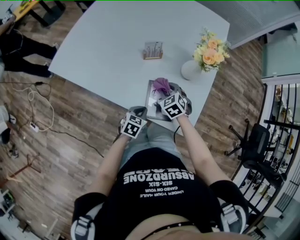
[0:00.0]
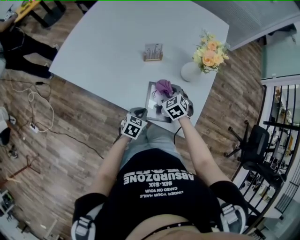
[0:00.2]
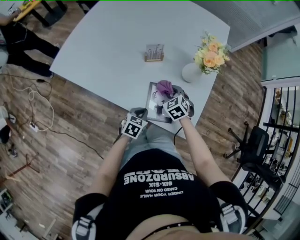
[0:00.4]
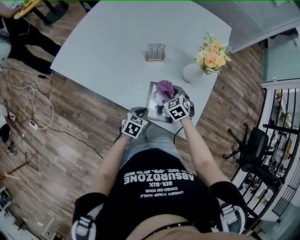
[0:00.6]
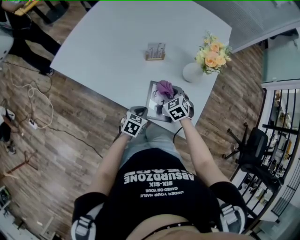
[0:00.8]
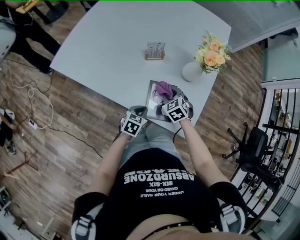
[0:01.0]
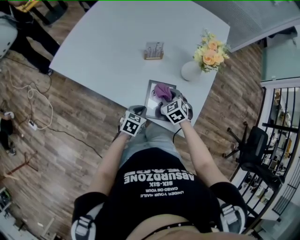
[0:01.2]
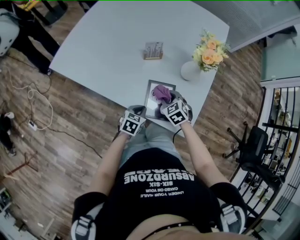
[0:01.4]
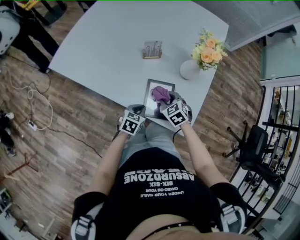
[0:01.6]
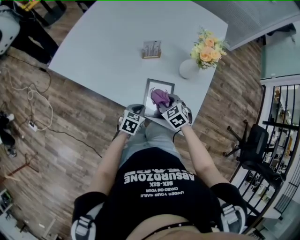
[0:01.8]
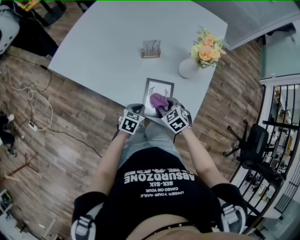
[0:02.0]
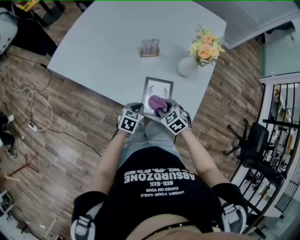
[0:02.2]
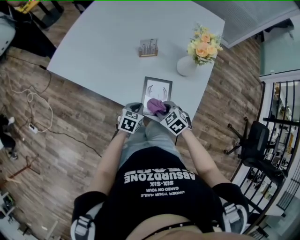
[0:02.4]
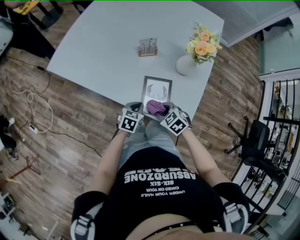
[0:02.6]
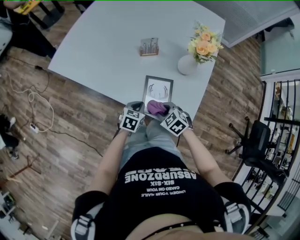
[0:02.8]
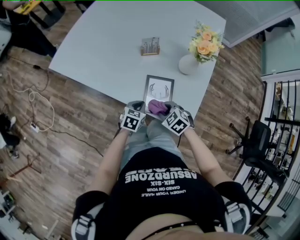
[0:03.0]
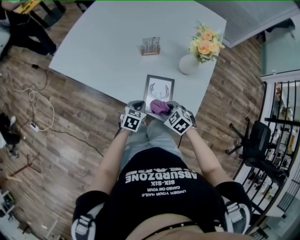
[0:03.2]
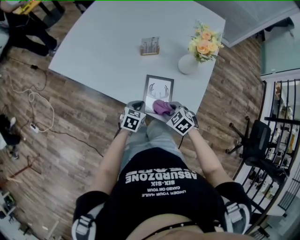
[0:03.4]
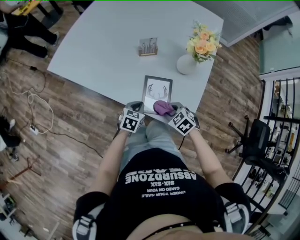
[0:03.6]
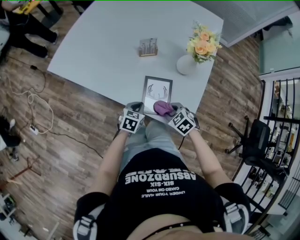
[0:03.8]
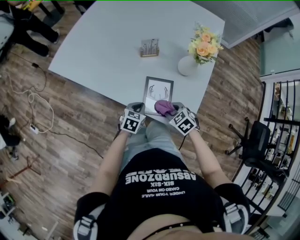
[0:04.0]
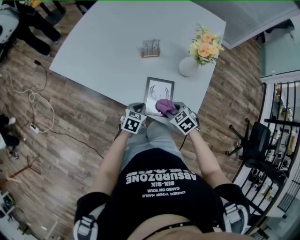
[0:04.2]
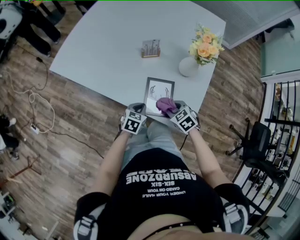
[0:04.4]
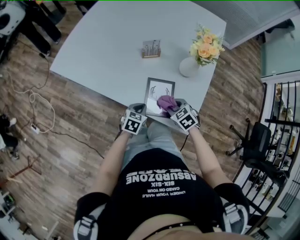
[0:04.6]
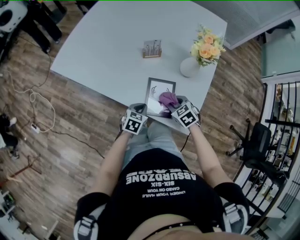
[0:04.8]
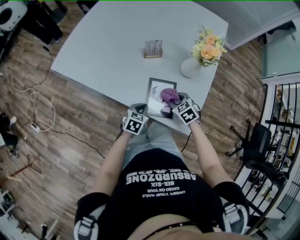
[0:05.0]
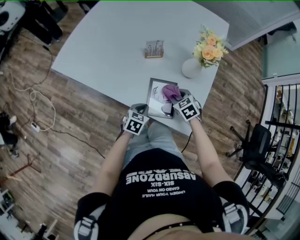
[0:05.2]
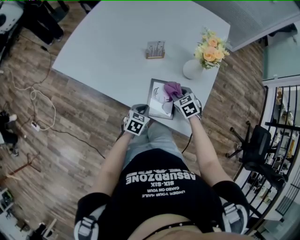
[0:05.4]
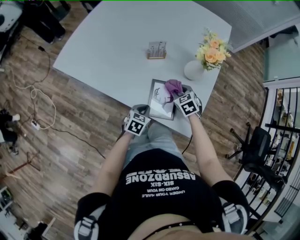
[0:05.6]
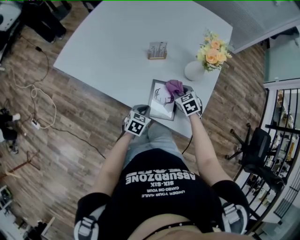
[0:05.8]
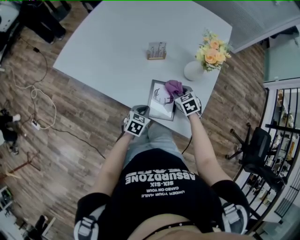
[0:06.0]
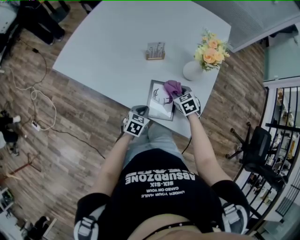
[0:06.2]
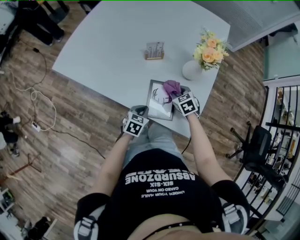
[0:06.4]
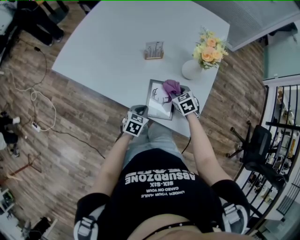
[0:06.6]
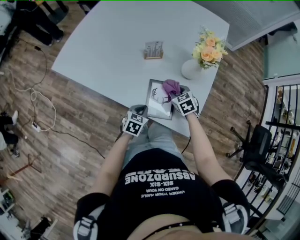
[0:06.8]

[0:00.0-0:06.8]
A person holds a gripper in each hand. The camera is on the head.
0:00.0 to 0:01.4: The grippers make only small movements.
0:01.4 to 0:02.8: The right gripper is displaced backward by some 10 cm.
0:02.8 to 0:04.0: There are only small adjustments of the grippers.
0:04.0 to 0:05.4: The right gripper shifts approximately 10 cm forward.
0:05.4 to 0:06.8: The grippers make only small movements.

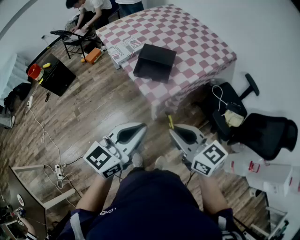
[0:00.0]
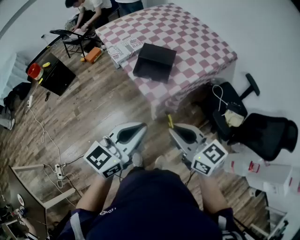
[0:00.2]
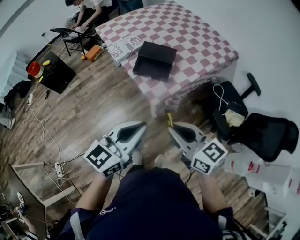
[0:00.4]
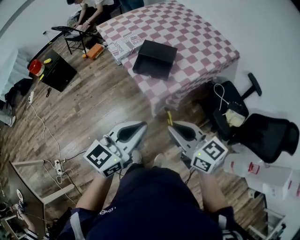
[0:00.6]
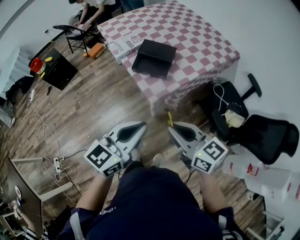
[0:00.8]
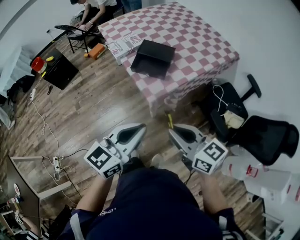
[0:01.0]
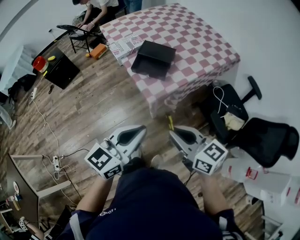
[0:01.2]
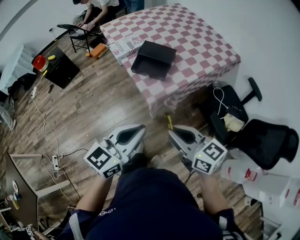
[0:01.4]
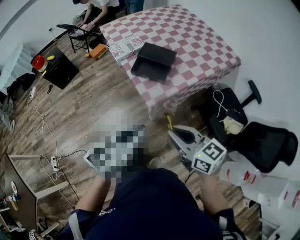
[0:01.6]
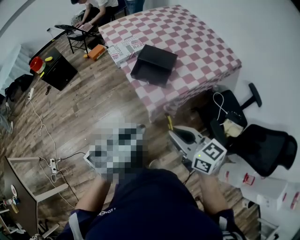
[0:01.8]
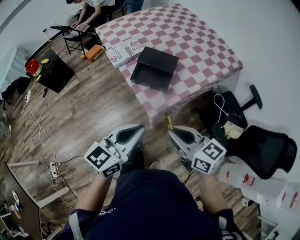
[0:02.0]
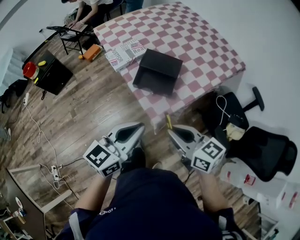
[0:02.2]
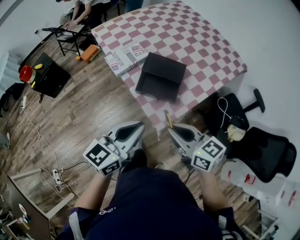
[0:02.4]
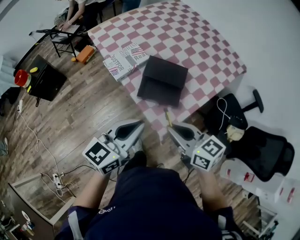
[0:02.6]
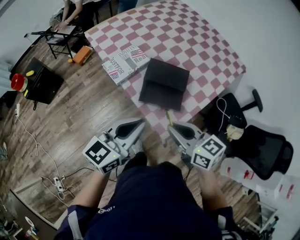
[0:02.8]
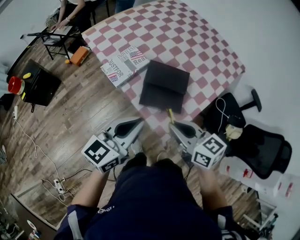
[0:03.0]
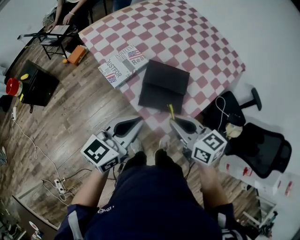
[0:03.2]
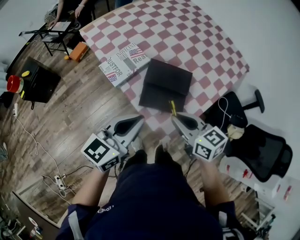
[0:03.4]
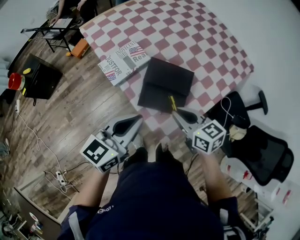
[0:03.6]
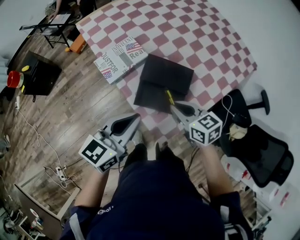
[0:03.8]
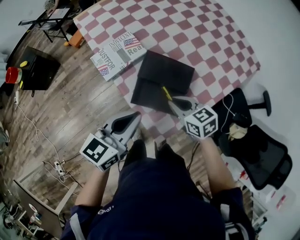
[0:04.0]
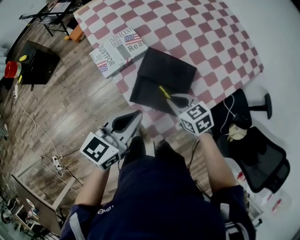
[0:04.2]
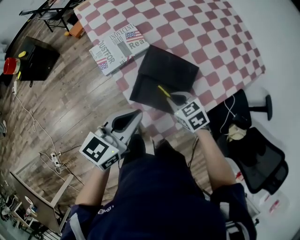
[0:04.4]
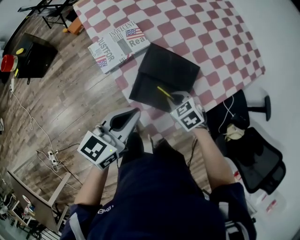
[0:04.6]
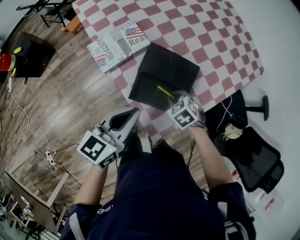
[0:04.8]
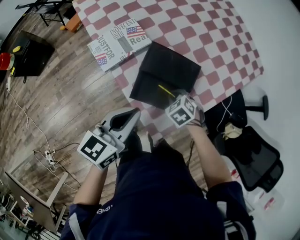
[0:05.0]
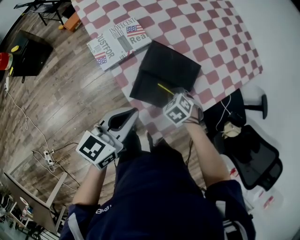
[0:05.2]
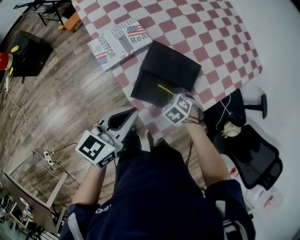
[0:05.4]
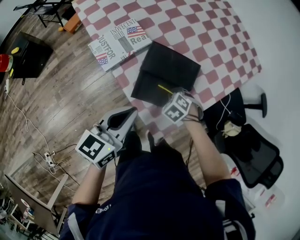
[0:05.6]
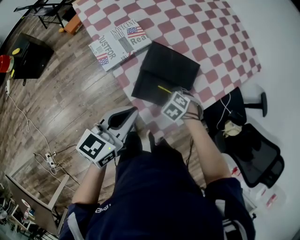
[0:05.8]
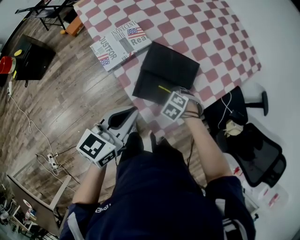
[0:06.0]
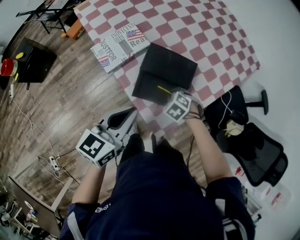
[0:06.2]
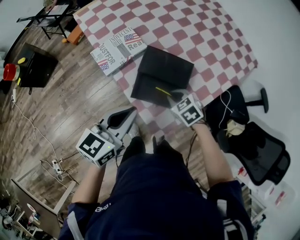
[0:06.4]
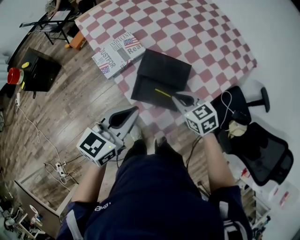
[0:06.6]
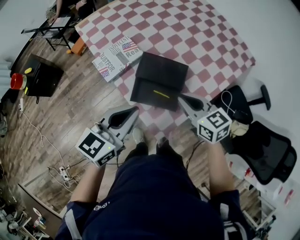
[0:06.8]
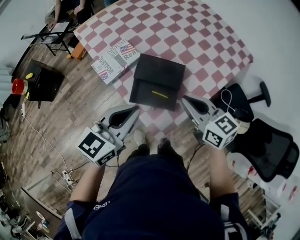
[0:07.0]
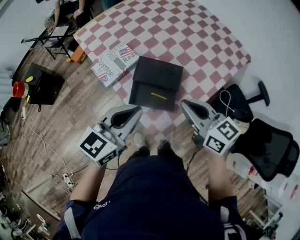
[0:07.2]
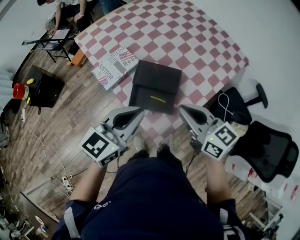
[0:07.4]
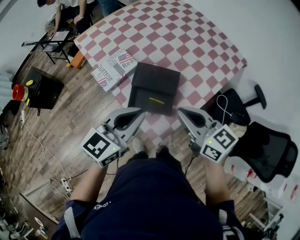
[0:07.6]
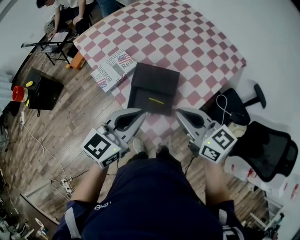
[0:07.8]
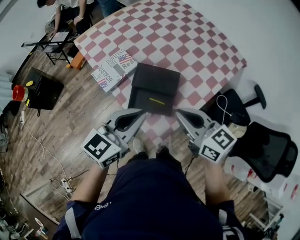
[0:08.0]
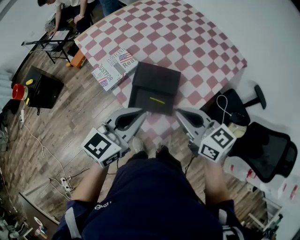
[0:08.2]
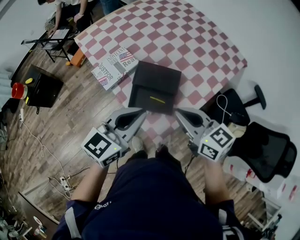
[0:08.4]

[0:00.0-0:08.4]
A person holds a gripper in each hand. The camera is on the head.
0:00.0 to 0:01.4: Both grippers move to the right, roughly 5 cm.
0:01.4 to 0:02.8: The grippers both shift forward by approximately 30 cm.
0:02.8 to 0:04.2: The right gripper travels downward and forward by roughly 25 cm, and rotates approximately 30 degrees. Meanwhile the left gripper heads forward and downward, covering roughly 15 cm.
0:04.2 to 0:05.6: The right gripper goes roughly 10 cm downward, and points its fingers approximately 30 degrees further downward.
0:05.6 to 0:07.0: The right gripper heads upward, covering some 30 cm, and tips its fingers upward by approximately 60 degrees; the left gripper moves upward, roughly 10 cm.
0:07.0 to 0:08.4: The right gripper moves some 5 cm.

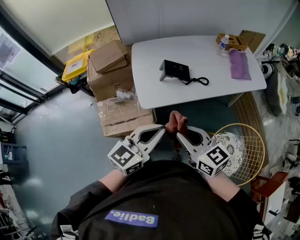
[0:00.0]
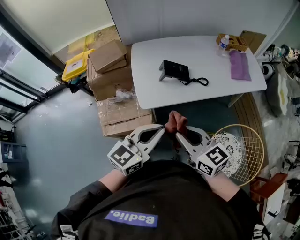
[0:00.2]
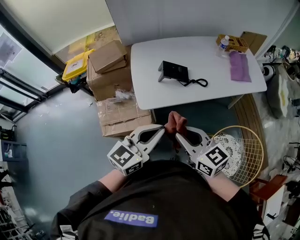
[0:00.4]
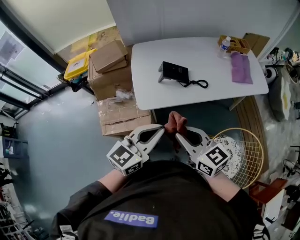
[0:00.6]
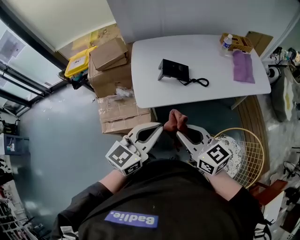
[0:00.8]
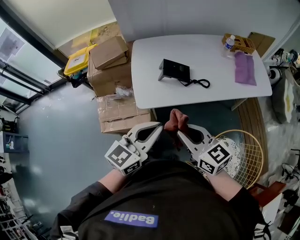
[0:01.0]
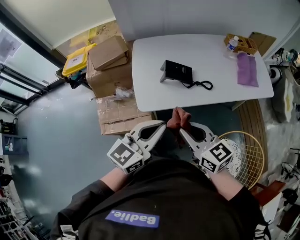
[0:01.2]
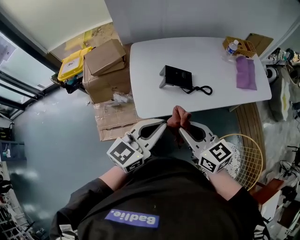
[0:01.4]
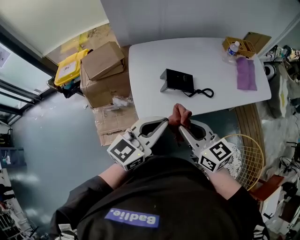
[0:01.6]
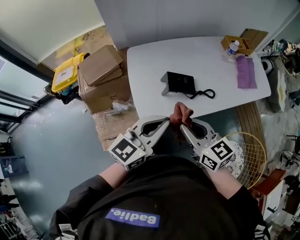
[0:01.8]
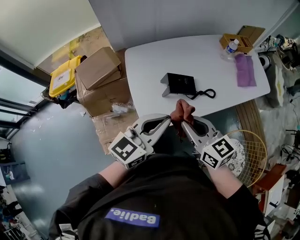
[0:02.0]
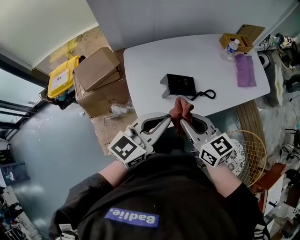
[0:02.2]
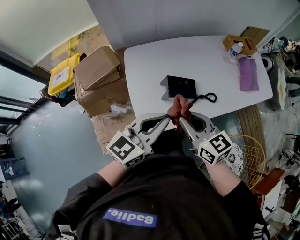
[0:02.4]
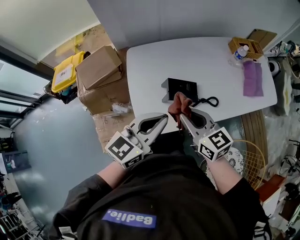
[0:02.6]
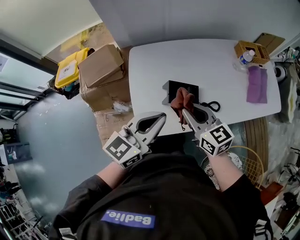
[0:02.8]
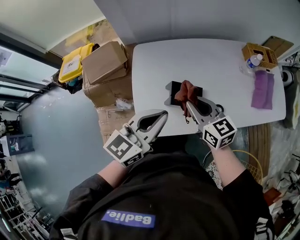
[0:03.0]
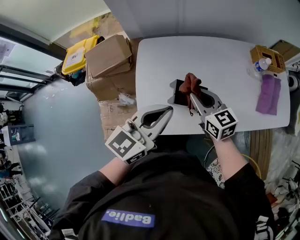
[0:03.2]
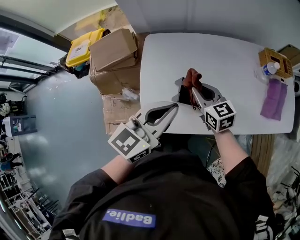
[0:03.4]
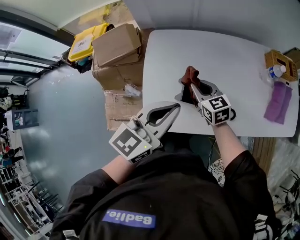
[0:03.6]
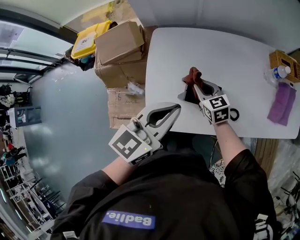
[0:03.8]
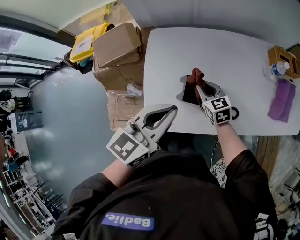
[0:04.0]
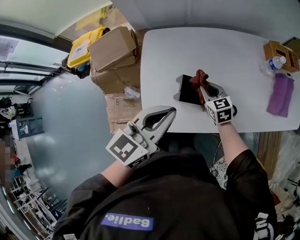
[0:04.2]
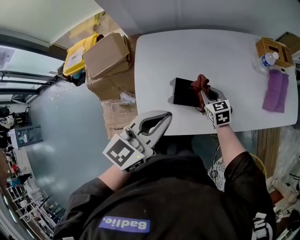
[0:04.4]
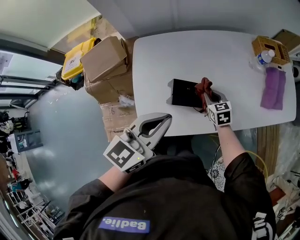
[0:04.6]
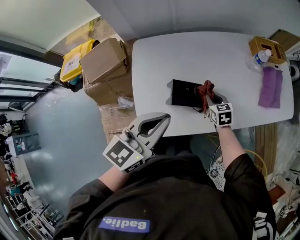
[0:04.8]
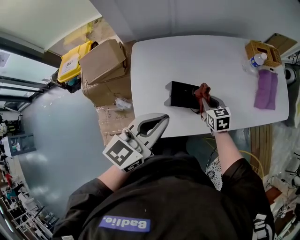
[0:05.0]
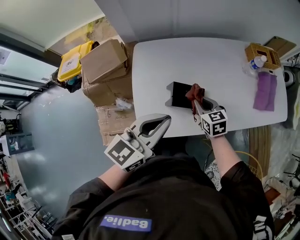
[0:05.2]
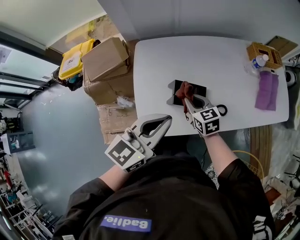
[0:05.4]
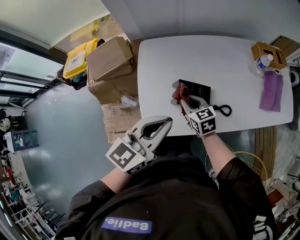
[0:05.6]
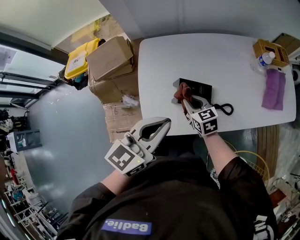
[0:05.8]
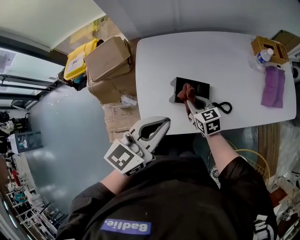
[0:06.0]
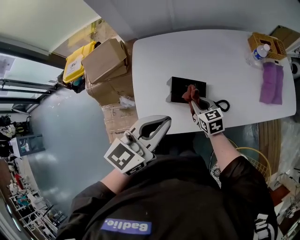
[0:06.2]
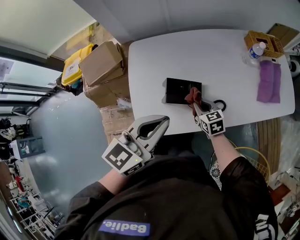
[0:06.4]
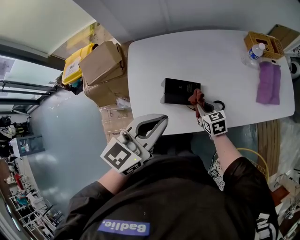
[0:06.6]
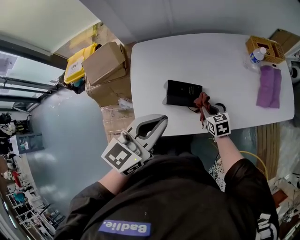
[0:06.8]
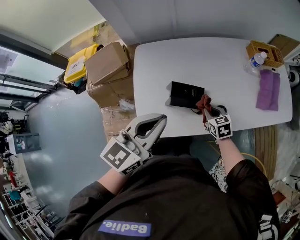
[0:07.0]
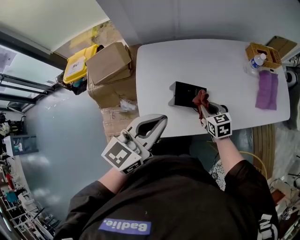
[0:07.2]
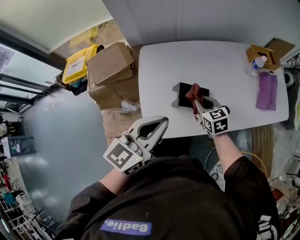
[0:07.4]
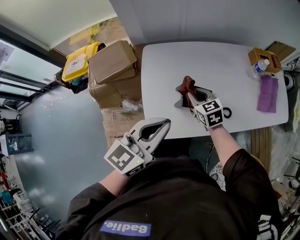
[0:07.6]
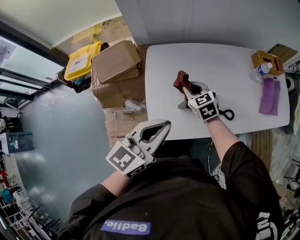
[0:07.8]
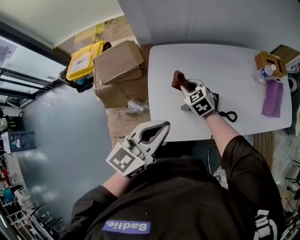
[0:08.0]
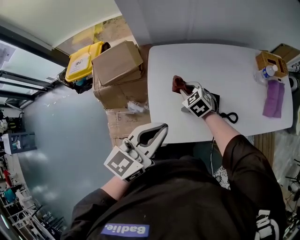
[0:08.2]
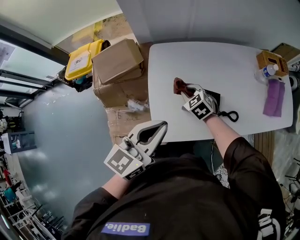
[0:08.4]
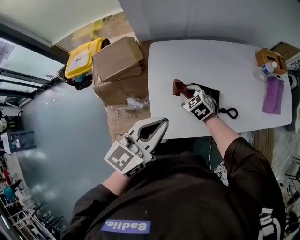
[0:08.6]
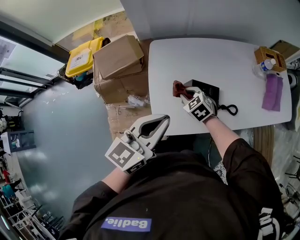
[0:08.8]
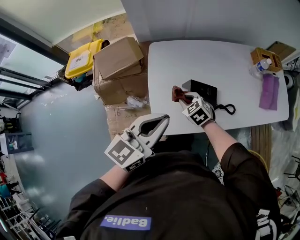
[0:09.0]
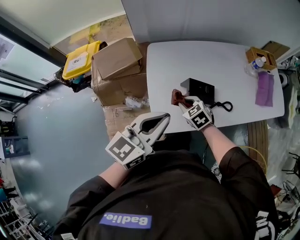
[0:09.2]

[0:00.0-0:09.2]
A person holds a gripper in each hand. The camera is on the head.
0:00.0 to 0:01.6: The grippers both shift forward by some 15 cm.
0:01.6 to 0:03.0: The grippers both shift forward by approximately 20 cm.
0:03.0 to 0:04.6: The right gripper shifts some 25 cm downward and to the right, and turns by approximately 30 degrees.
0:04.6 to 0:06.2: The right gripper shifts some 10 cm backward and to the left.
0:06.2 to 0:07.6: The left gripper shifts approximately 5 cm to the left. Meanwhile the right gripper is displaced upward and to the left by about 10 cm.
0:07.6 to 0:09.2: The right gripper shifts some 10 cm to the left and backward; the left gripper ends up some 5 cm from where it was.
